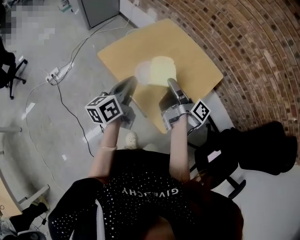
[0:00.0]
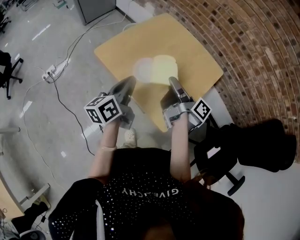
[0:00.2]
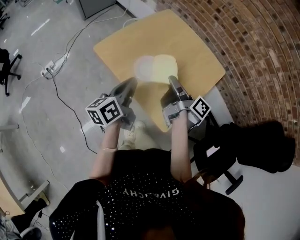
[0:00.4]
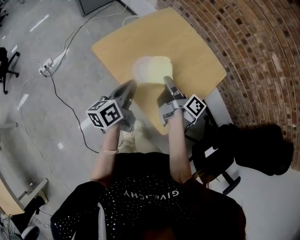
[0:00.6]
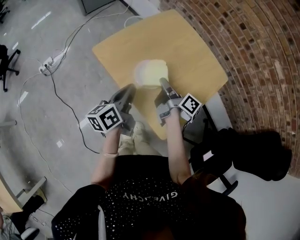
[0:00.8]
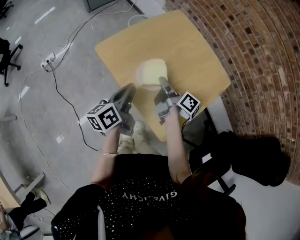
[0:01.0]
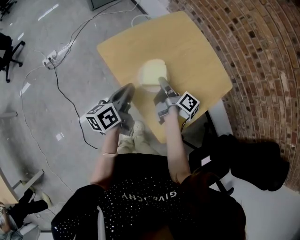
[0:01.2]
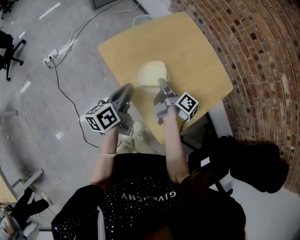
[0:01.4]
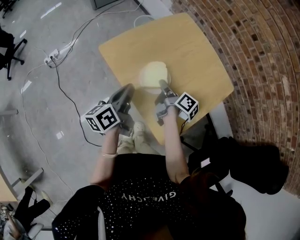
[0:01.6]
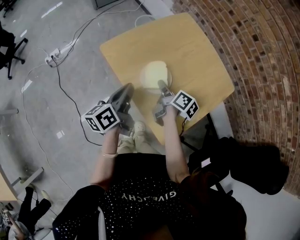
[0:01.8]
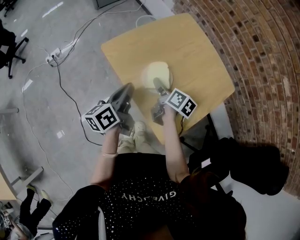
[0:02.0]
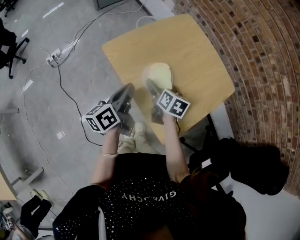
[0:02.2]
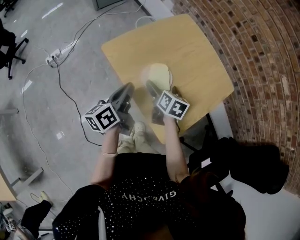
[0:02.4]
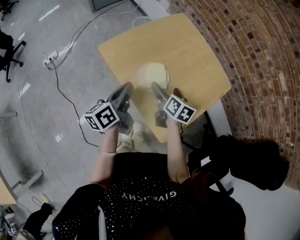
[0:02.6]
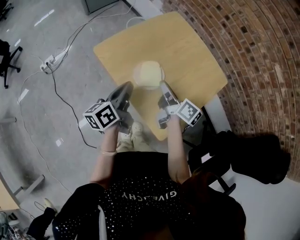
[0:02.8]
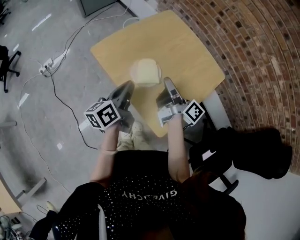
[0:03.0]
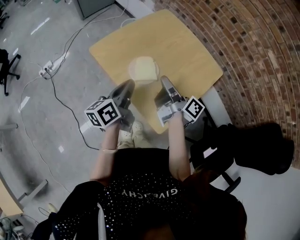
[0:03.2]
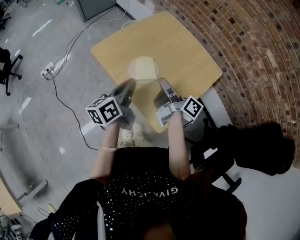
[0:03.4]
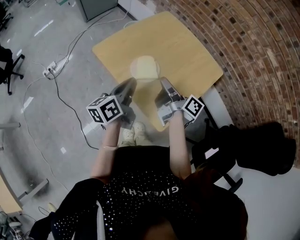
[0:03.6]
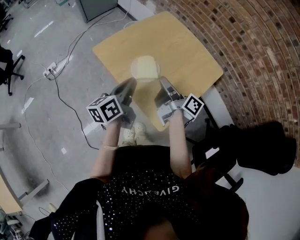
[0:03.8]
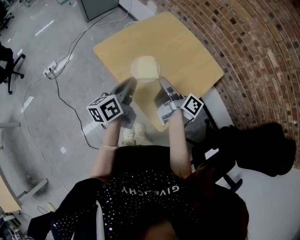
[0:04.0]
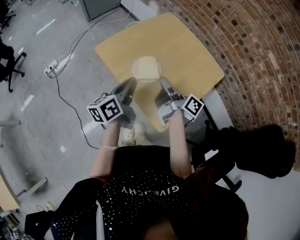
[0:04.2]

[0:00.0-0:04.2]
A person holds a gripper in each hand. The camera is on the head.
0:00.0 to 0:01.4: The left gripper moves downward, approximately 10 cm.
0:02.8 to 0:04.2: The left gripper ends up some 5 cm from where it was.

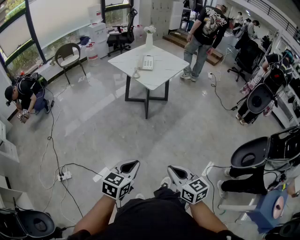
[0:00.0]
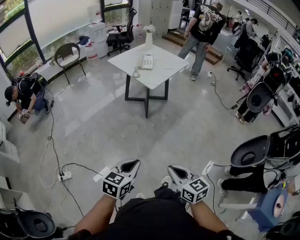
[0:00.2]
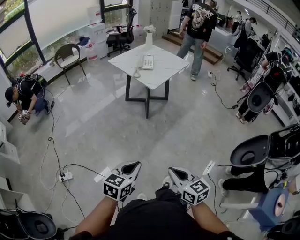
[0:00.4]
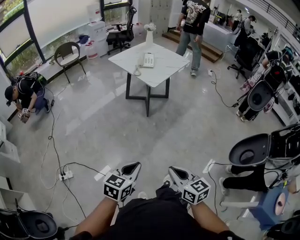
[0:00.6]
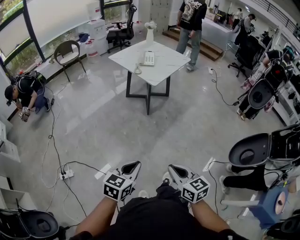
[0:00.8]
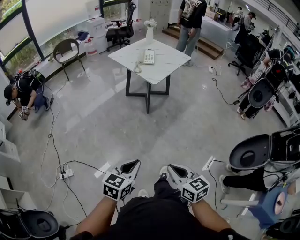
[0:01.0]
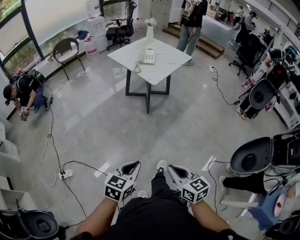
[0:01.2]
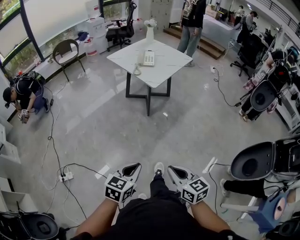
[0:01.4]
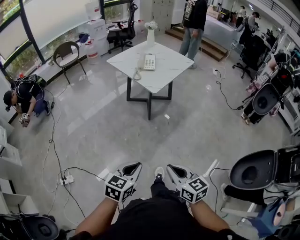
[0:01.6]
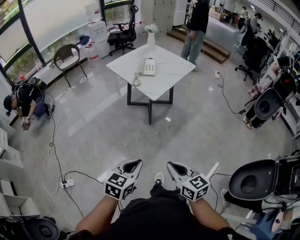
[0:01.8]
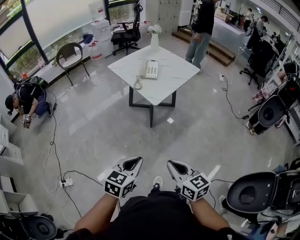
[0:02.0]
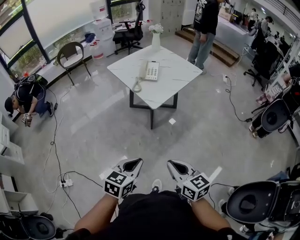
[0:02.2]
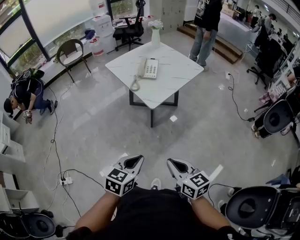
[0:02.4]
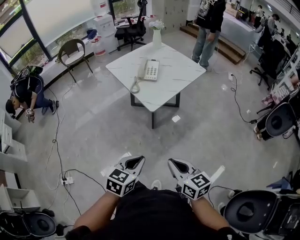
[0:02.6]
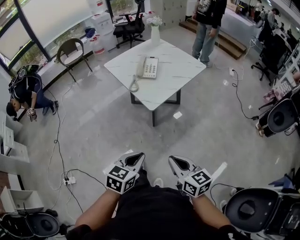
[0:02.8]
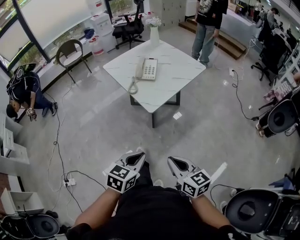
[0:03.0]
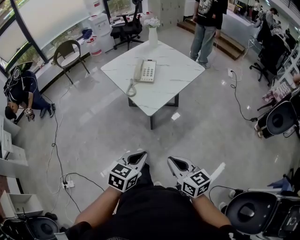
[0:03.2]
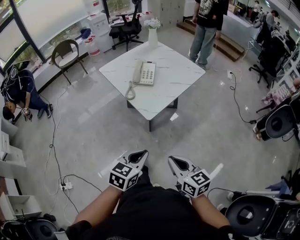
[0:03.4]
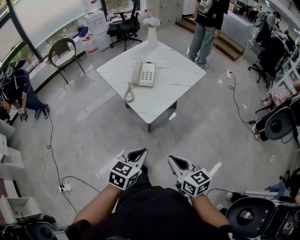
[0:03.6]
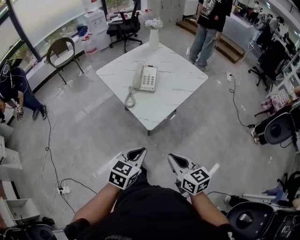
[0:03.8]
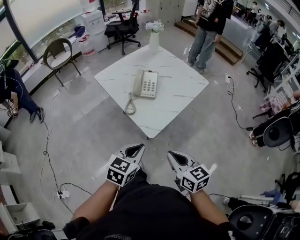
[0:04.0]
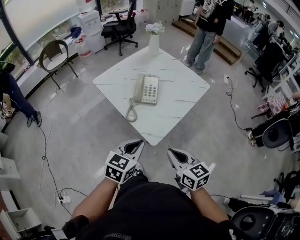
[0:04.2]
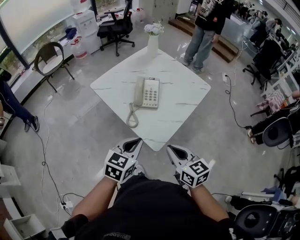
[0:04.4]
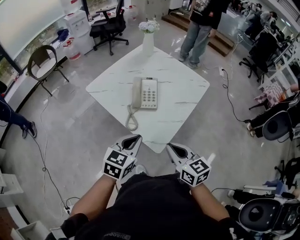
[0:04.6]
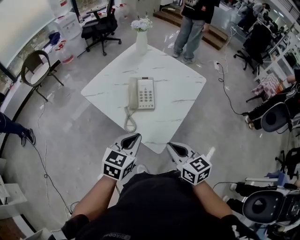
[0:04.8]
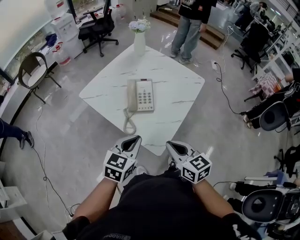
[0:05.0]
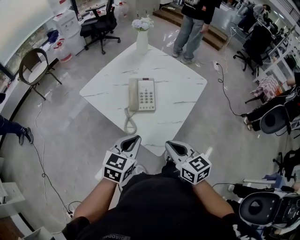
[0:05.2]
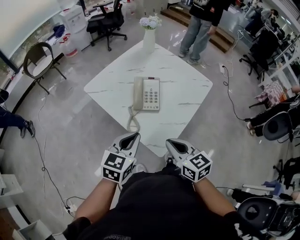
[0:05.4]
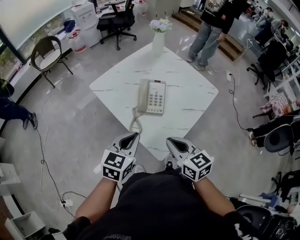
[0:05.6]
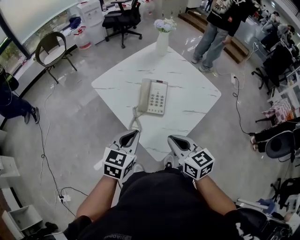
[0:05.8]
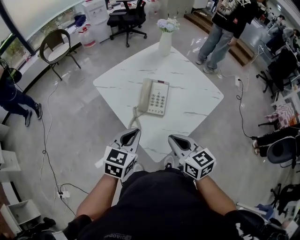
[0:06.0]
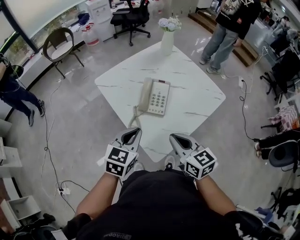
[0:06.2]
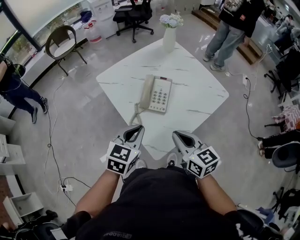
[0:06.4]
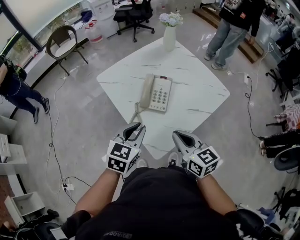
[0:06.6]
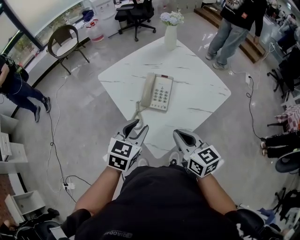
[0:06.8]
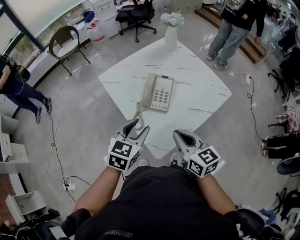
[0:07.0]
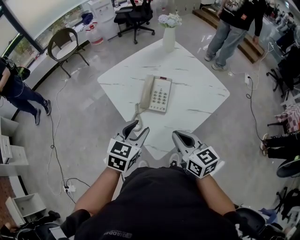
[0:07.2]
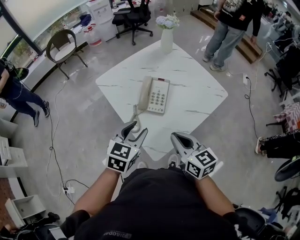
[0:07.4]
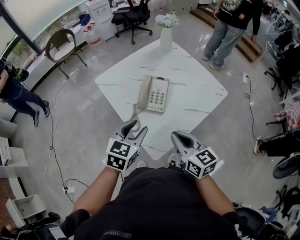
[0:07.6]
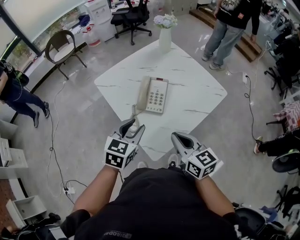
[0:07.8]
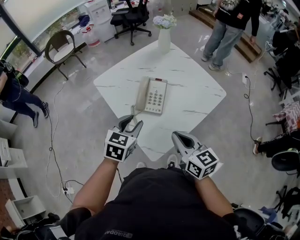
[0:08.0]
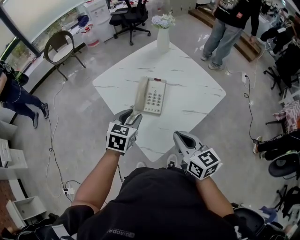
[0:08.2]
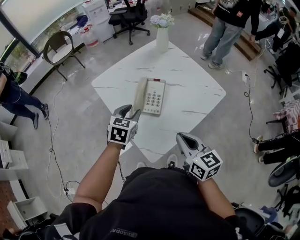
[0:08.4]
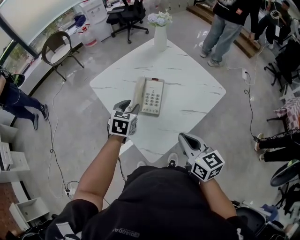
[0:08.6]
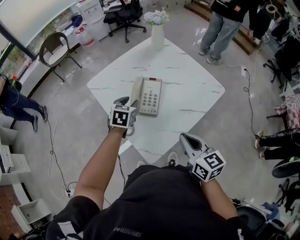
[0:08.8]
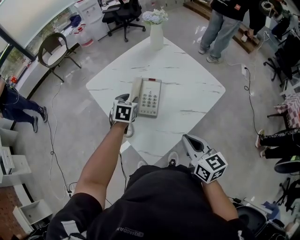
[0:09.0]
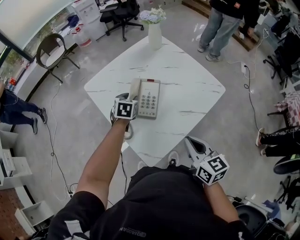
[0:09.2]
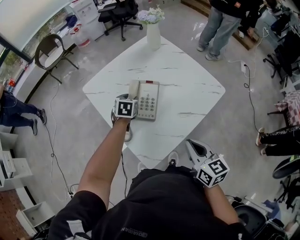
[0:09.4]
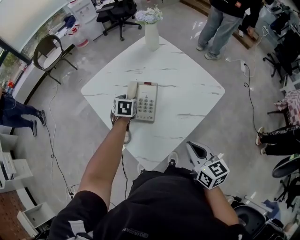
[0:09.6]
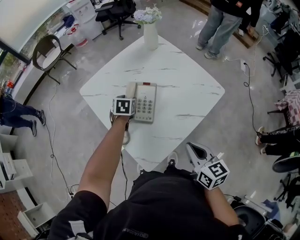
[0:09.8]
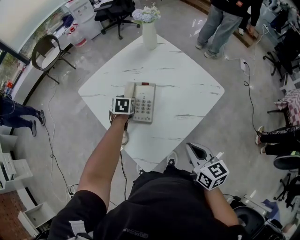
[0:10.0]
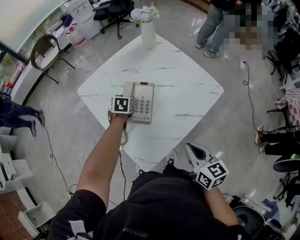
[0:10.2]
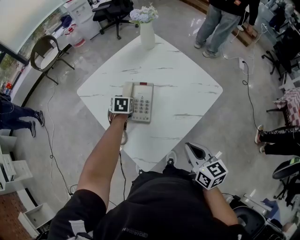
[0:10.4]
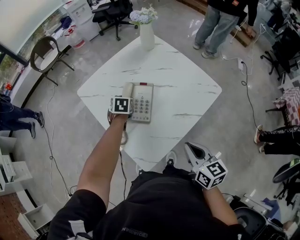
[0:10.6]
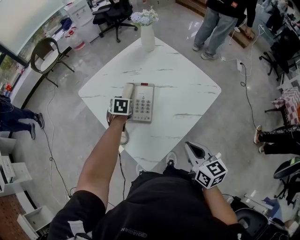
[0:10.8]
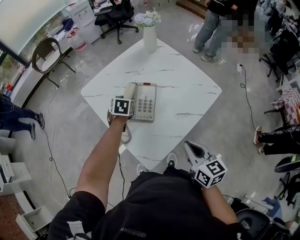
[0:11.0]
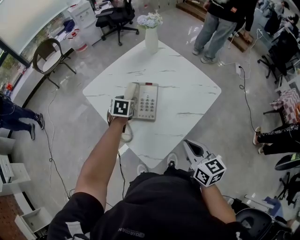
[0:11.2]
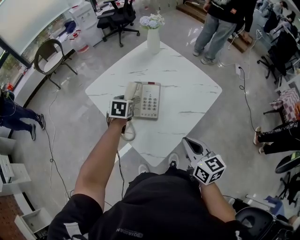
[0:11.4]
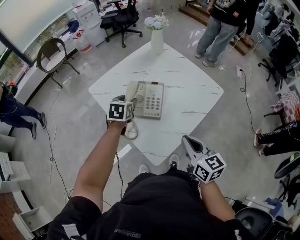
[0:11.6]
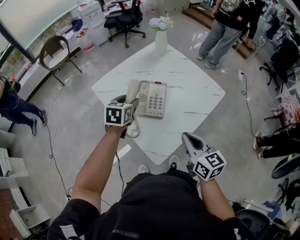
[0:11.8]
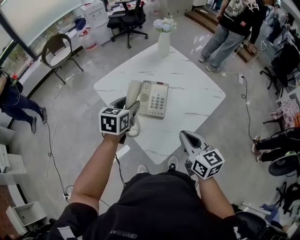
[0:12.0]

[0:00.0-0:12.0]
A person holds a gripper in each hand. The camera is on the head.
0:00.0 to 0:01.6: Both grippers travel together forward, approximately 10 cm.
0:01.6 to 0:03.0: The two grippers go about 30 cm forward and to the right.
0:03.0 to 0:04.4: Both grippers travel together forward, some 35 cm.
0:04.4 to 0:06.0: The two grippers go approximately 10 cm forward.
0:06.0 to 0:07.6: The left gripper opens up.
0:07.6 to 0:09.0: The left gripper travels forward and downward by approximately 20 cm, while the right gripper moves to the right, roughly 10 cm.
0:09.0 to 0:10.4: The left gripper heads downward and forward, covering roughly 10 cm. Meanwhile the right gripper changes place by approximately 5 cm.
0:10.4 to 0:12.0: The left gripper heads upward and backward, covering roughly 25 cm, and turns by about 30 degrees. The right gripper shifts roughly 10 cm to the left and upward.

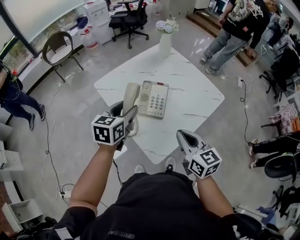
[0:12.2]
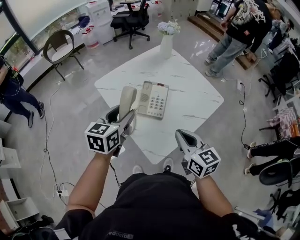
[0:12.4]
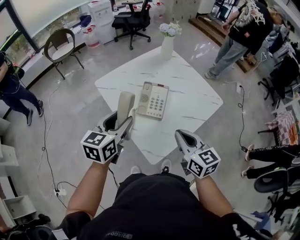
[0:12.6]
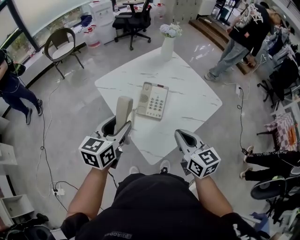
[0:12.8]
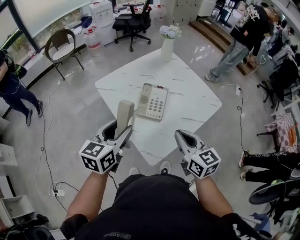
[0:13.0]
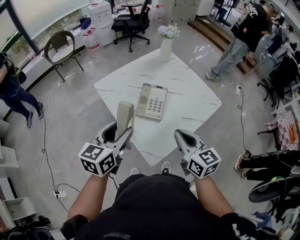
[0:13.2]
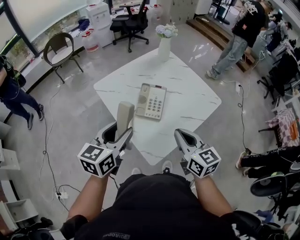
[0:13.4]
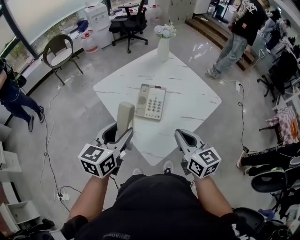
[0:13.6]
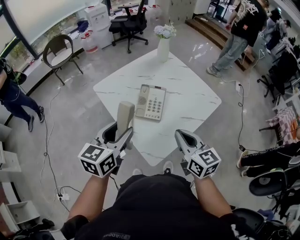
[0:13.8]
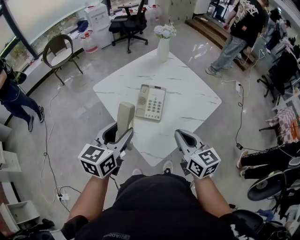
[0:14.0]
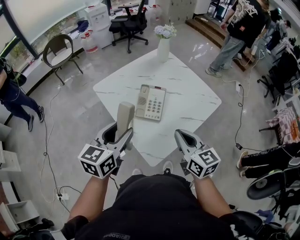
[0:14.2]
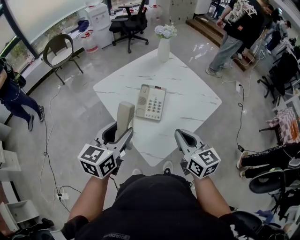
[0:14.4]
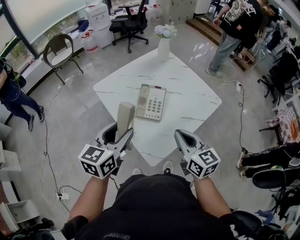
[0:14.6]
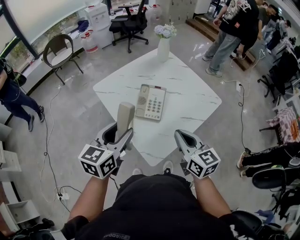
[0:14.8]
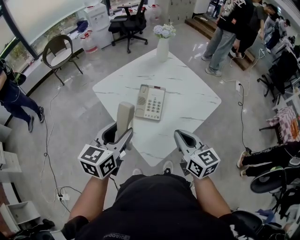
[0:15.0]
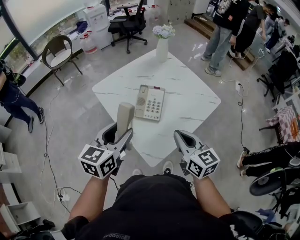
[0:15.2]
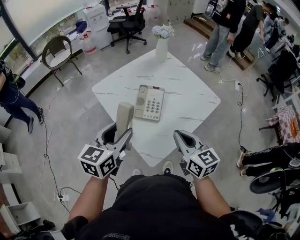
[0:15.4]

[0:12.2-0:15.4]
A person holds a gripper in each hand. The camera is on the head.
0:12.2 to 0:13.8: The left gripper shifts about 10 cm backward.
0:13.8 to 0:15.4: The two grippers keep their place.

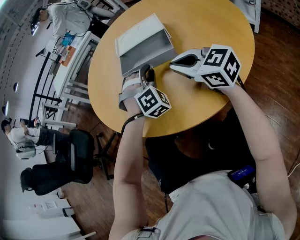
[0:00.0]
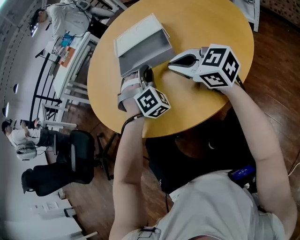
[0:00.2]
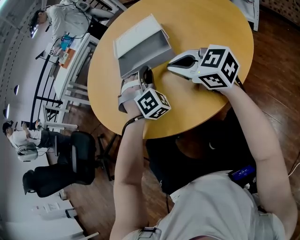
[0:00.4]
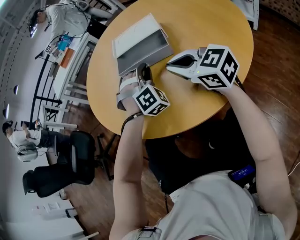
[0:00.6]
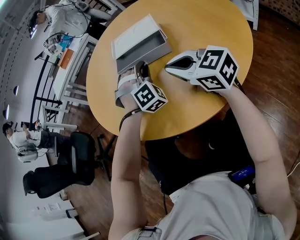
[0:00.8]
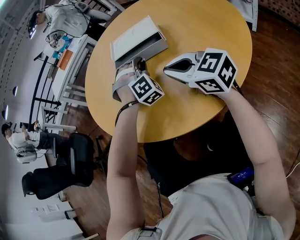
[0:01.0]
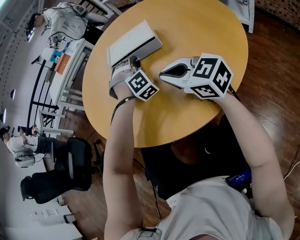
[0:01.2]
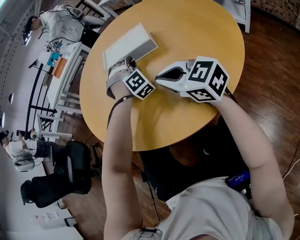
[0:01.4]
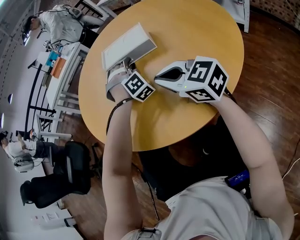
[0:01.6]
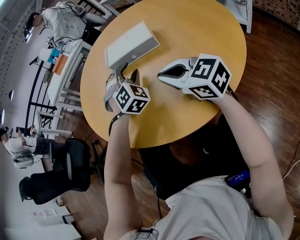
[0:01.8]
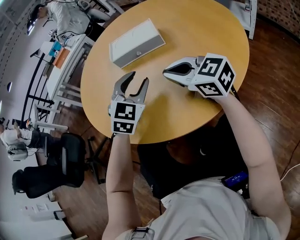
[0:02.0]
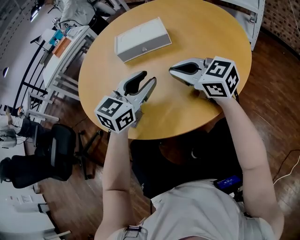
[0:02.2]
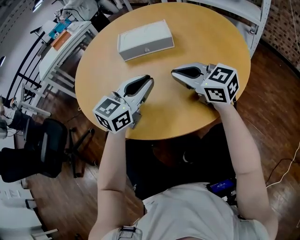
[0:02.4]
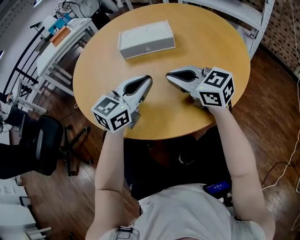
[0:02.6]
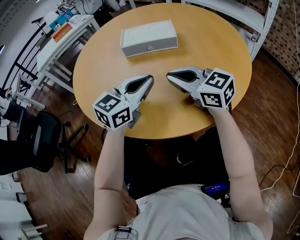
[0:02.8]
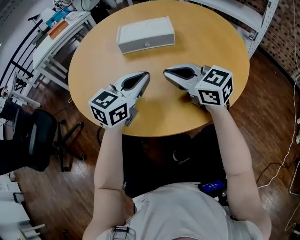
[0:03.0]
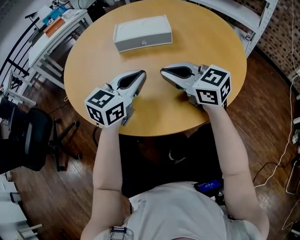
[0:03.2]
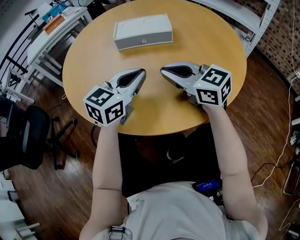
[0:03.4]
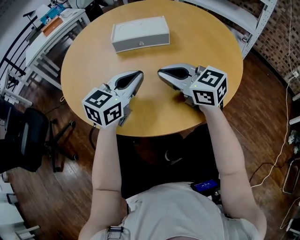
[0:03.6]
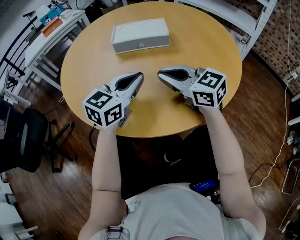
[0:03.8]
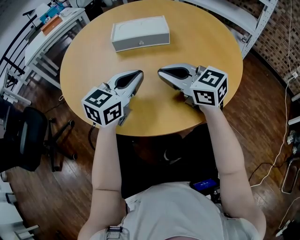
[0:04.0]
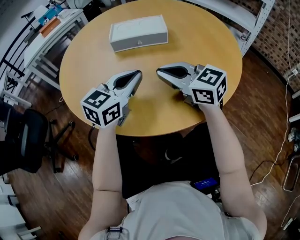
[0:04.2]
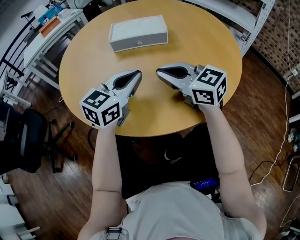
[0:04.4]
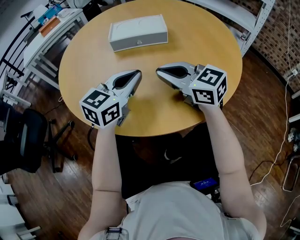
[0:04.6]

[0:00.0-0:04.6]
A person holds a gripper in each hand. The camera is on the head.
0:00.0 to 0:01.6: The left gripper goes about 10 cm forward and to the right.
0:01.6 to 0:03.0: The left gripper changes place by roughly 20 cm, swivels some 100 degrees, and closes its fingers, while the right gripper ends up approximately 5 cm from where it was.
0:03.0 to 0:04.6: The two grippers keep their place.
